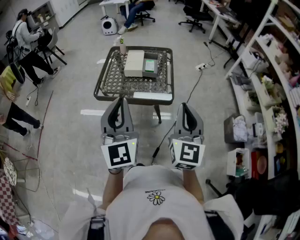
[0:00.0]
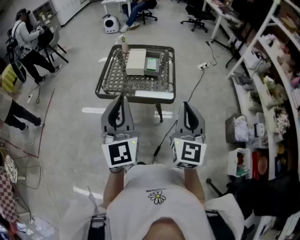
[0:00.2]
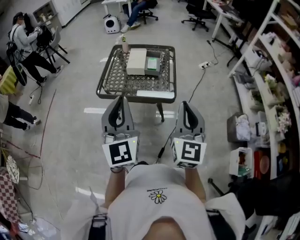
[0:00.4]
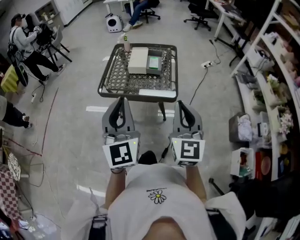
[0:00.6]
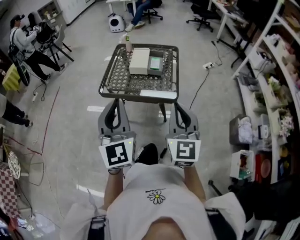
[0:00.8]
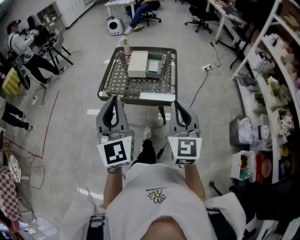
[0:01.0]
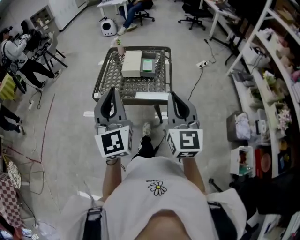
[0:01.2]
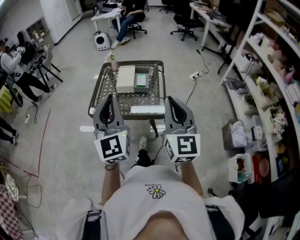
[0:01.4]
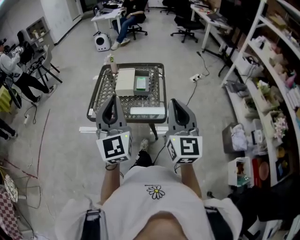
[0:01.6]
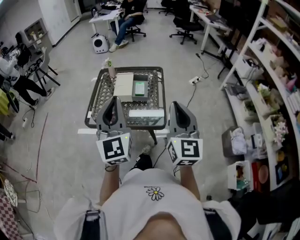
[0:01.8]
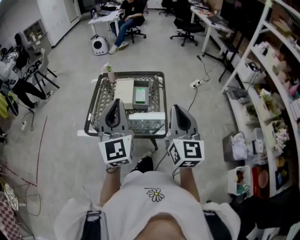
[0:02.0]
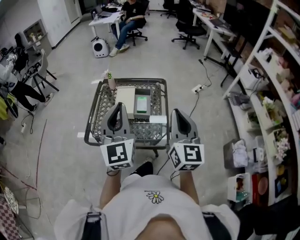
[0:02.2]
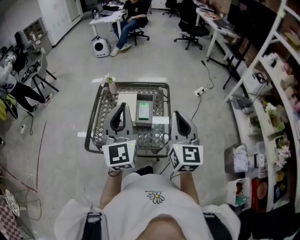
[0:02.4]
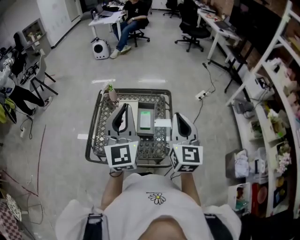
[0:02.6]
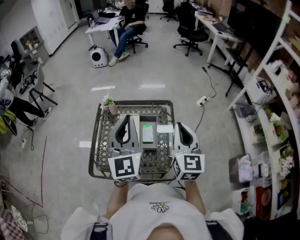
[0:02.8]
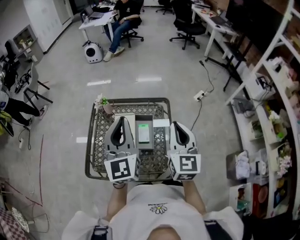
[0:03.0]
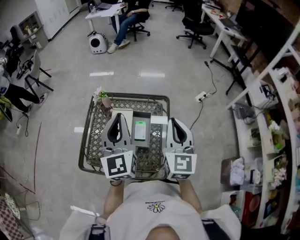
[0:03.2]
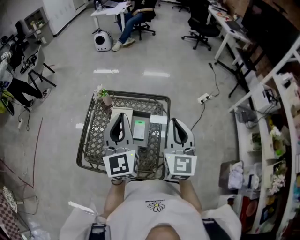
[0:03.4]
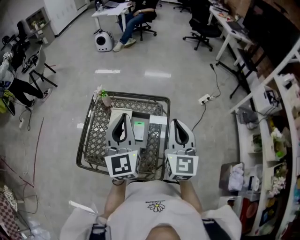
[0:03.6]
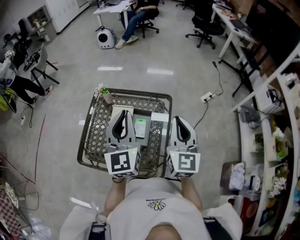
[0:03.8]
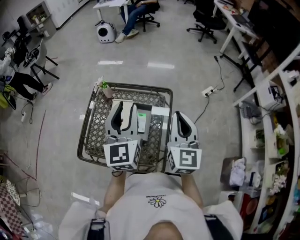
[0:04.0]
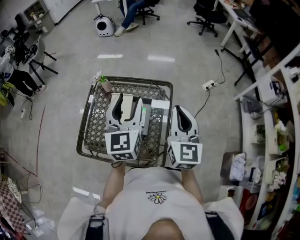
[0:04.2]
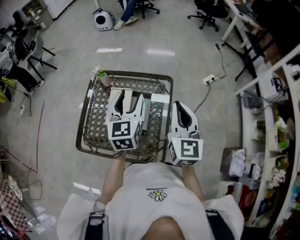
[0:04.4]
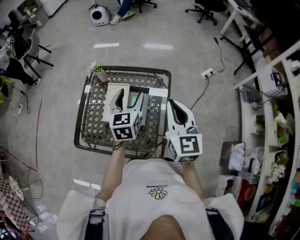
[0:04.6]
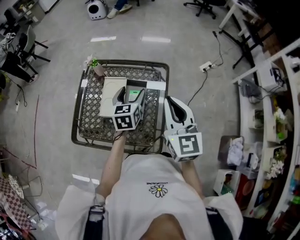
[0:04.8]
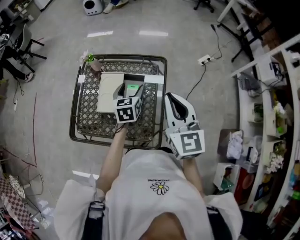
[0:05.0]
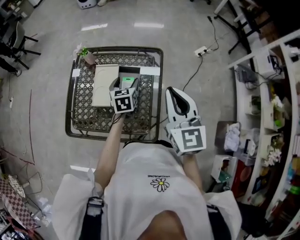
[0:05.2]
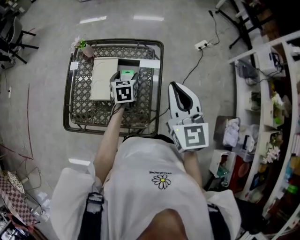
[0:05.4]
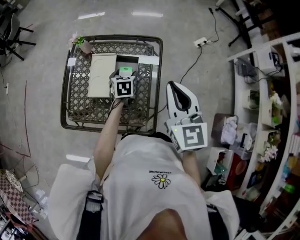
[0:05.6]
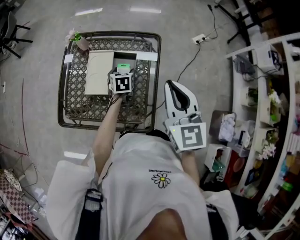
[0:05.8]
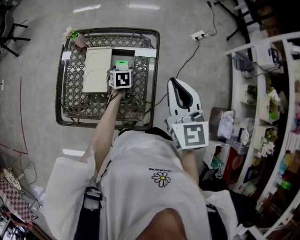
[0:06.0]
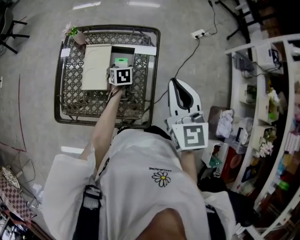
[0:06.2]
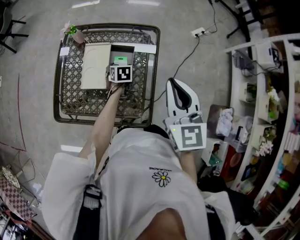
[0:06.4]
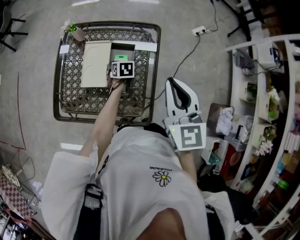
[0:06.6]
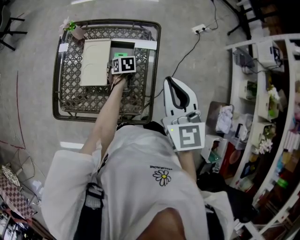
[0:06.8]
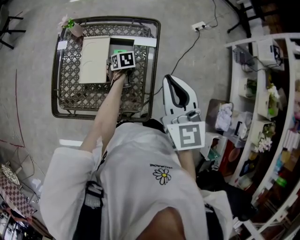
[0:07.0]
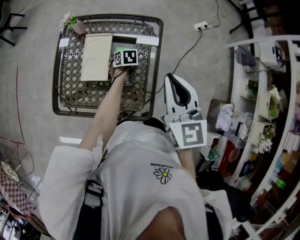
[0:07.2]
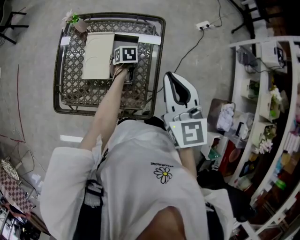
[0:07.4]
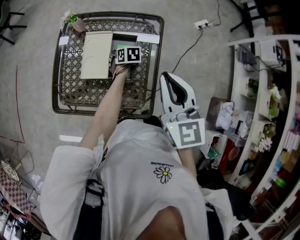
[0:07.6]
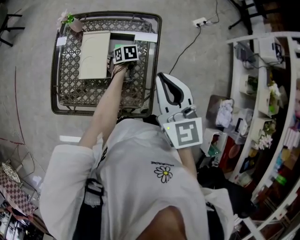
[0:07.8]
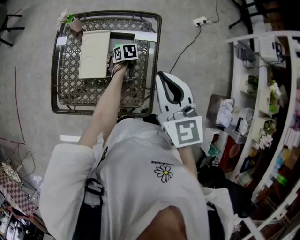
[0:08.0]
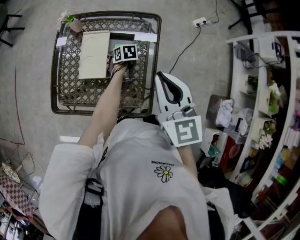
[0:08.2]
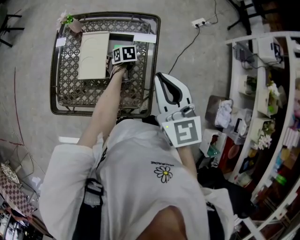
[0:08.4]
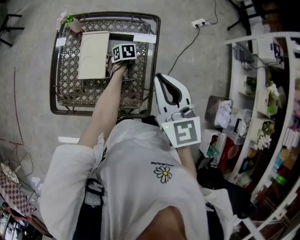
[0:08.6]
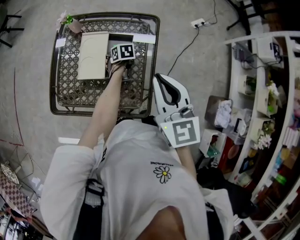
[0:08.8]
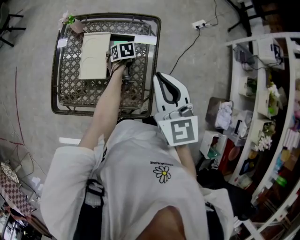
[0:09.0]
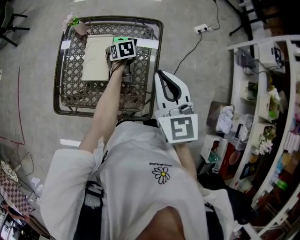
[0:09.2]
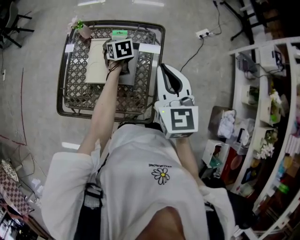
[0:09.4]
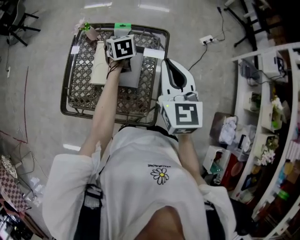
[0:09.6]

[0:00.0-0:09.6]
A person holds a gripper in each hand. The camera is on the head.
0:00.0 to 0:01.6: The grippers both shift forward by approximately 10 cm.
0:01.6 to 0:03.2: The grippers both shift forward by roughly 40 cm.
0:03.2 to 0:04.8: The left gripper moves downward, approximately 20 cm, tips its fingers downward by roughly 30 degrees, and opens up.
0:04.8 to 0:06.4: The left gripper shifts about 20 cm downward, and points its fingers approximately 30 degrees further downward.
0:06.4 to 0:08.0: The grippers stay close to where they were, moving slightly.
0:08.0 to 0:09.6: The right gripper changes place by about 5 cm. The left gripper is displaced upward and forward by some 25 cm, and tilts its fingers approximately 30 degrees upward.

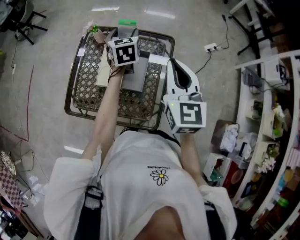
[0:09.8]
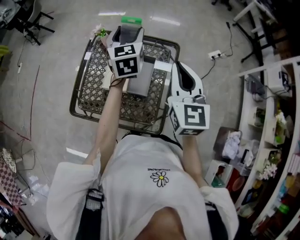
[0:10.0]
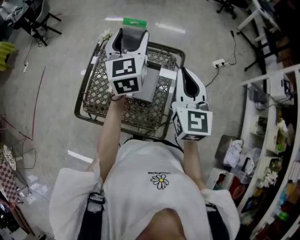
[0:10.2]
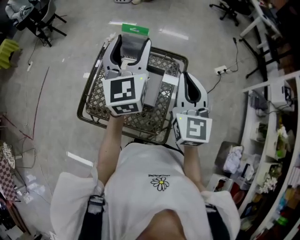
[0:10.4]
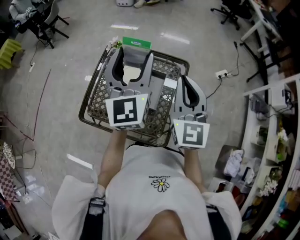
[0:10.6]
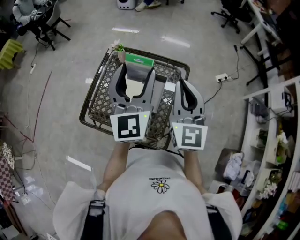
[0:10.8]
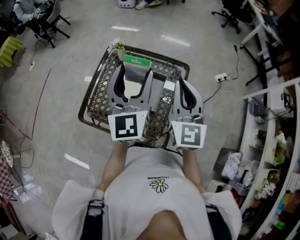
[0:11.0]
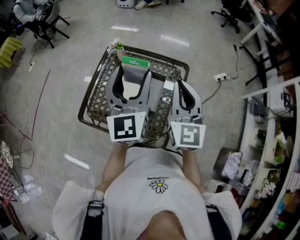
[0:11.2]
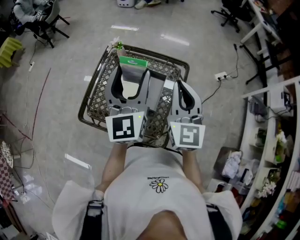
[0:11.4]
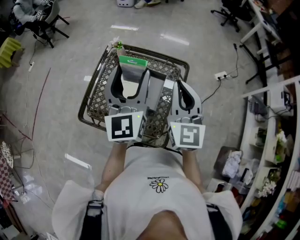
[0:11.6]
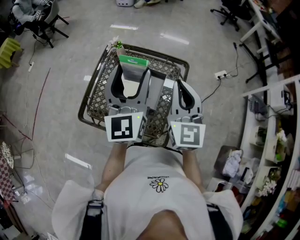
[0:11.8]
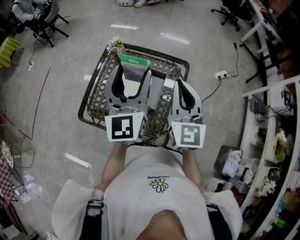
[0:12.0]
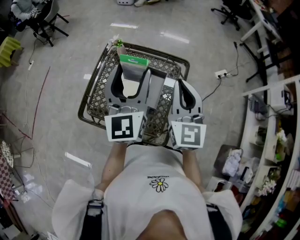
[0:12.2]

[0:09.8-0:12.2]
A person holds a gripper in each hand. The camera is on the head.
0:09.8 to 0:11.0: The left gripper heads upward and backward, covering some 25 cm, and angles its fingers upward, by roughly 30 degrees. Meanwhile the right gripper moves roughly 5 cm.
0:11.0 to 0:12.2: The two grippers keep their place.

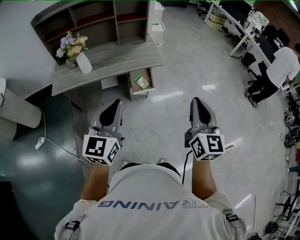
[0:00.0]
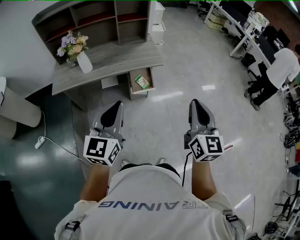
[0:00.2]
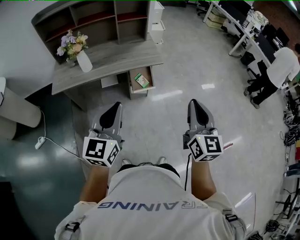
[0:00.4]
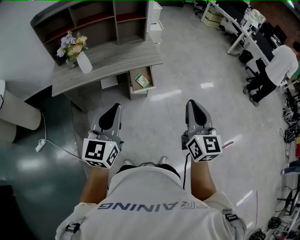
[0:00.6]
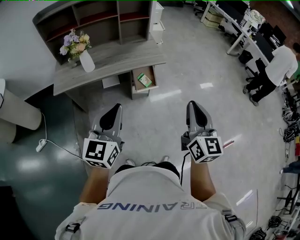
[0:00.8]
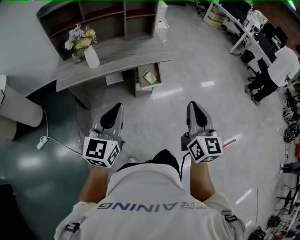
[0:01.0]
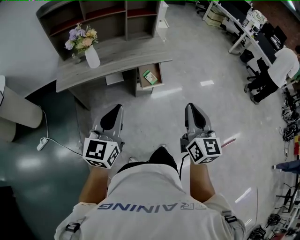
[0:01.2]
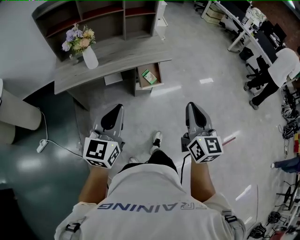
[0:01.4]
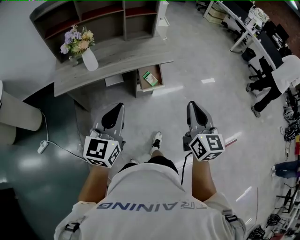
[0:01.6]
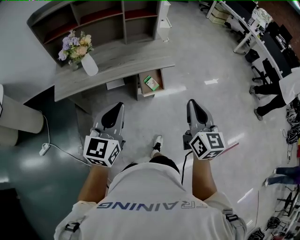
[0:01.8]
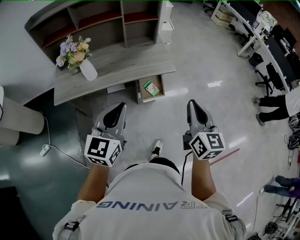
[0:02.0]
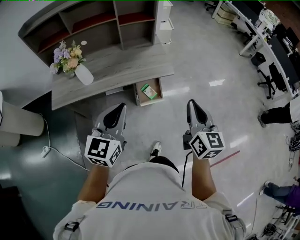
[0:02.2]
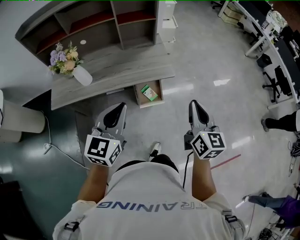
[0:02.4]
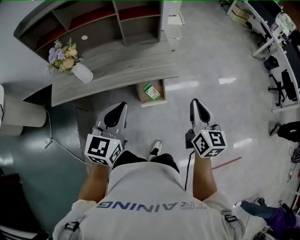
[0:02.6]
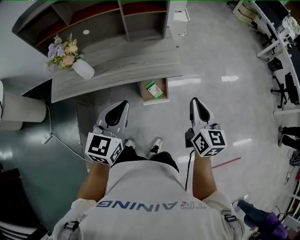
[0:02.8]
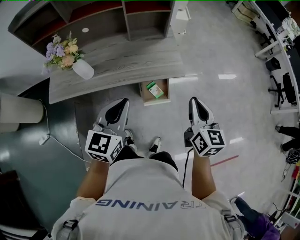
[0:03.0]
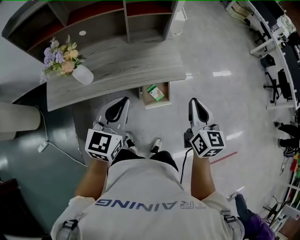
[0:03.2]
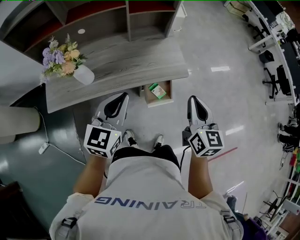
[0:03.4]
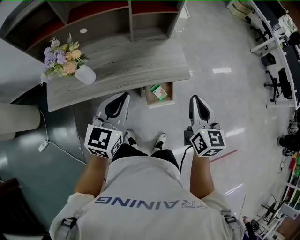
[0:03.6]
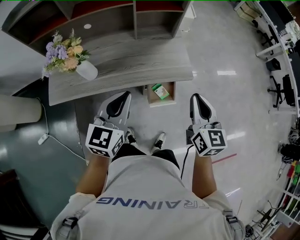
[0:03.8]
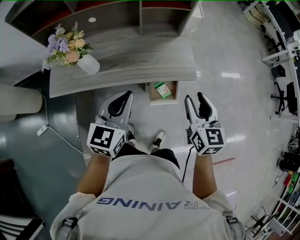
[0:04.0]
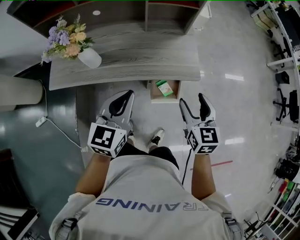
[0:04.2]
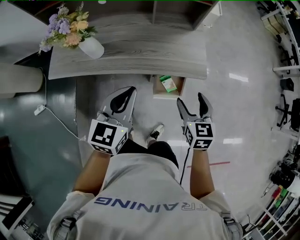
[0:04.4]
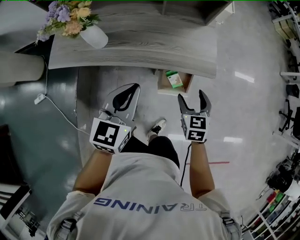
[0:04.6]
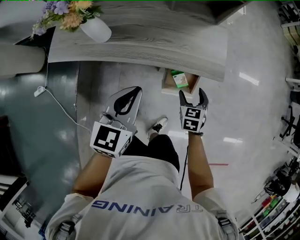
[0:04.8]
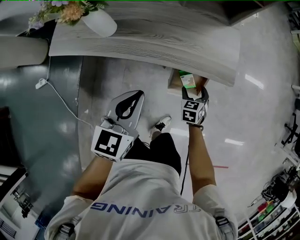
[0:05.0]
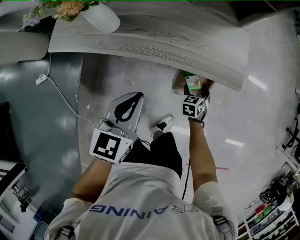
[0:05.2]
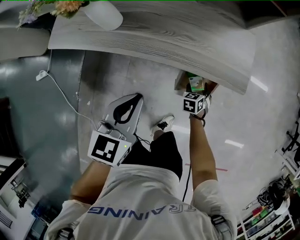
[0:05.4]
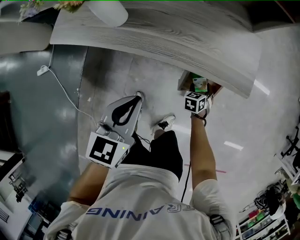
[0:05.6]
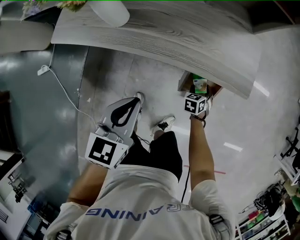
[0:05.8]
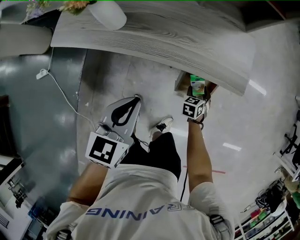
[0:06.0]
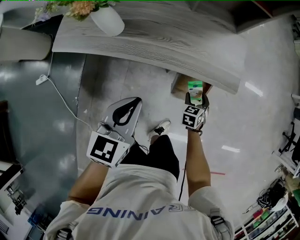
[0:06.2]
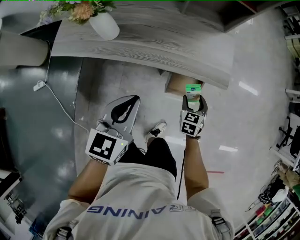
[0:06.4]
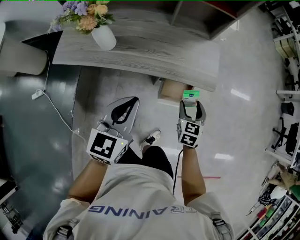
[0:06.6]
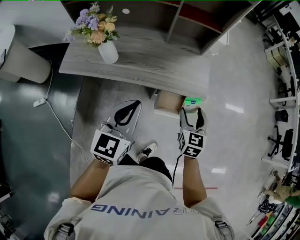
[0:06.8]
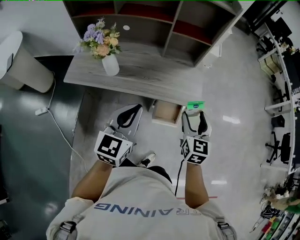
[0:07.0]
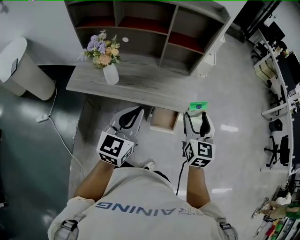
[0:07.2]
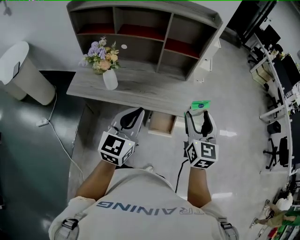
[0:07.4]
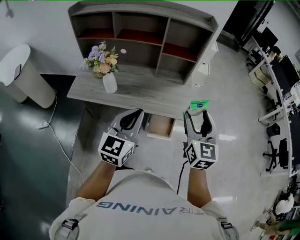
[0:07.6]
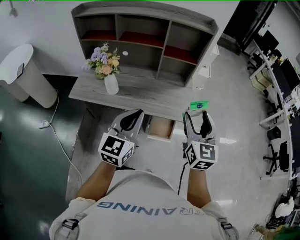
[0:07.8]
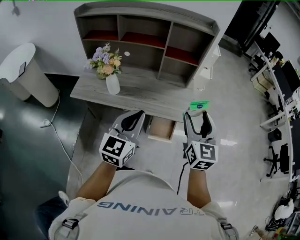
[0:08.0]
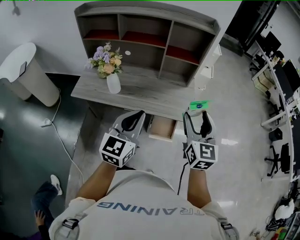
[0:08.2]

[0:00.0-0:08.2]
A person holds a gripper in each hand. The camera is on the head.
0:00.0 to 0:01.6: The left gripper travels to the left by roughly 10 cm; the right gripper goes roughly 10 cm to the left and downward.
0:01.6 to 0:03.2: The two grippers go about 30 cm forward.
0:03.2 to 0:05.0: The left gripper goes approximately 15 cm downward, and swivels some 20 degrees; the right gripper moves downward, approximately 40 cm, points its fingers approximately 40 degrees further downward, and opens.
0:05.0 to 0:06.6: The left gripper goes some 5 cm upward. Meanwhile the right gripper travels upward by approximately 15 cm.
0:06.6 to 0:08.2: The left gripper is displaced upward by approximately 10 cm; the right gripper moves upward, about 30 cm, and tilts its fingers approximately 30 degrees upward.

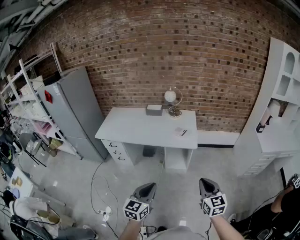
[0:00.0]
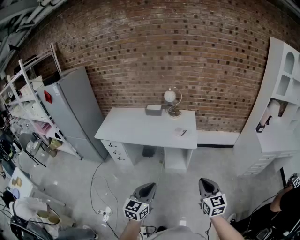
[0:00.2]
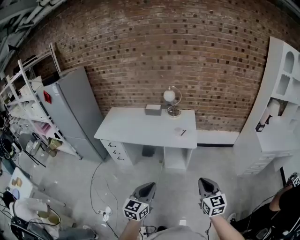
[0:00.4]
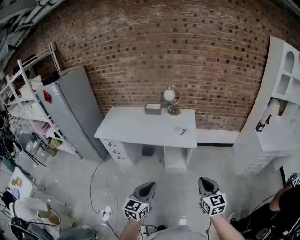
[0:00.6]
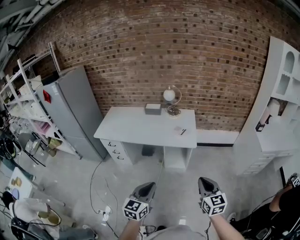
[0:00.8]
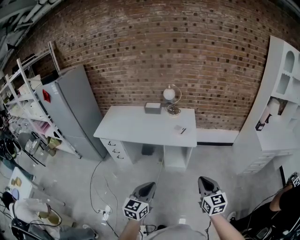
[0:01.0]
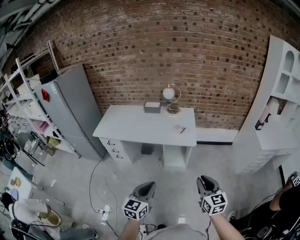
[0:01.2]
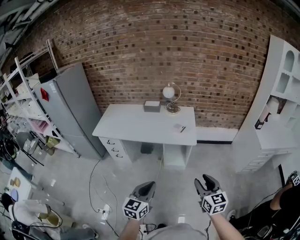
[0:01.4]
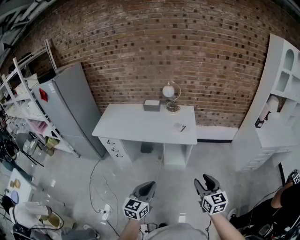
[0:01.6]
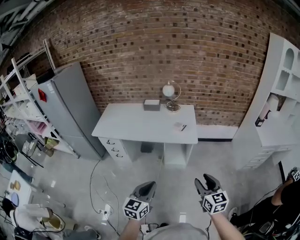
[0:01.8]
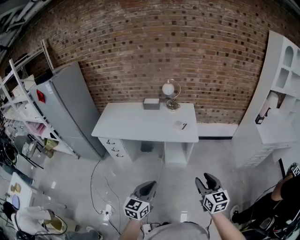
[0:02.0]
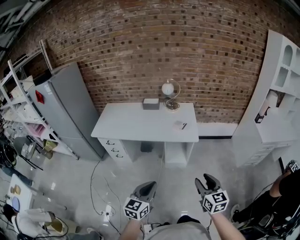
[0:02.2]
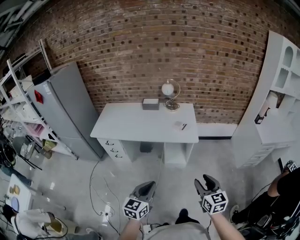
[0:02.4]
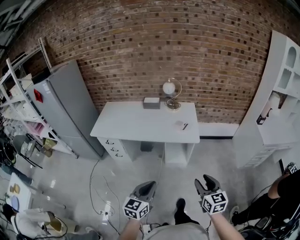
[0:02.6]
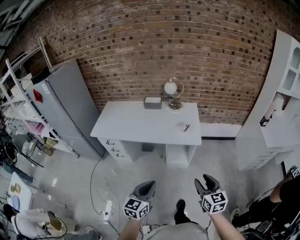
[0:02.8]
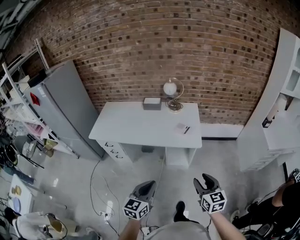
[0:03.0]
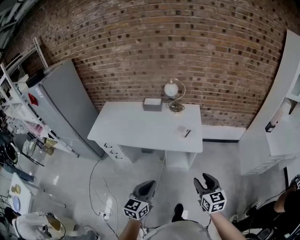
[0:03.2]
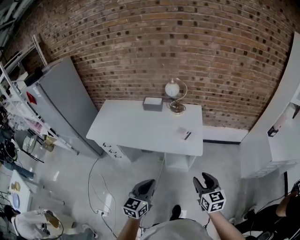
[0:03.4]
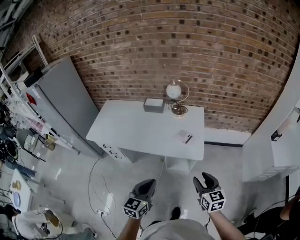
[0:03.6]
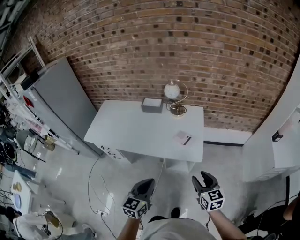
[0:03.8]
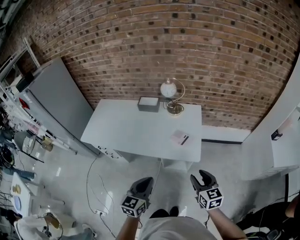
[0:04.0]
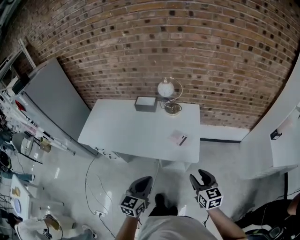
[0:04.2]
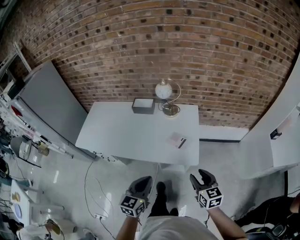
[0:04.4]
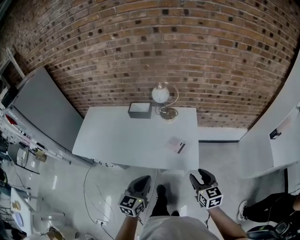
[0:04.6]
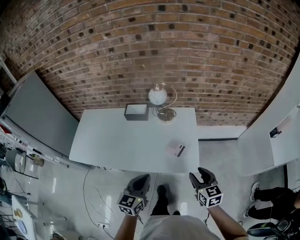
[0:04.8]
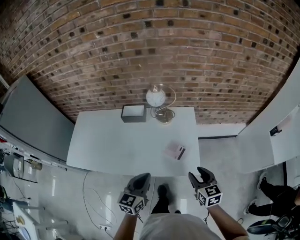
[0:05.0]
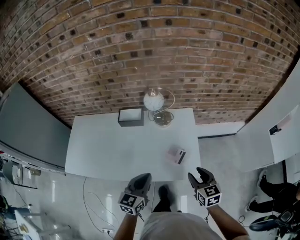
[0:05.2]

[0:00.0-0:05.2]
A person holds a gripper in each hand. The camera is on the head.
0:00.0 to 0:01.8: The right gripper opens up.
0:01.8 to 0:03.4: Both grippers travel together forward, some 25 cm.
0:03.4 to 0:05.2: The grippers both shift forward by some 35 cm.
